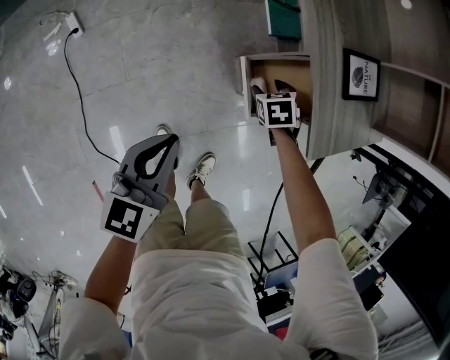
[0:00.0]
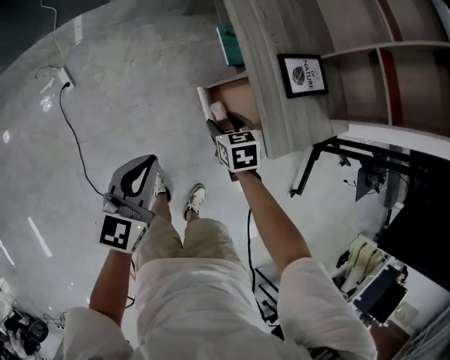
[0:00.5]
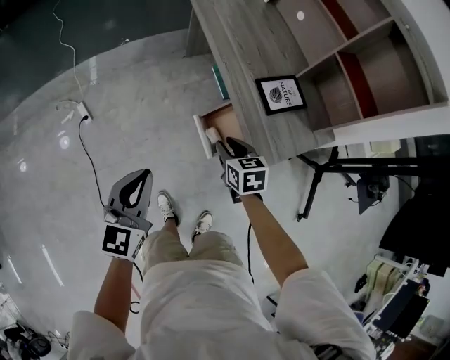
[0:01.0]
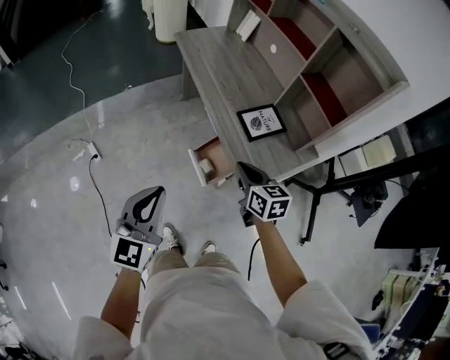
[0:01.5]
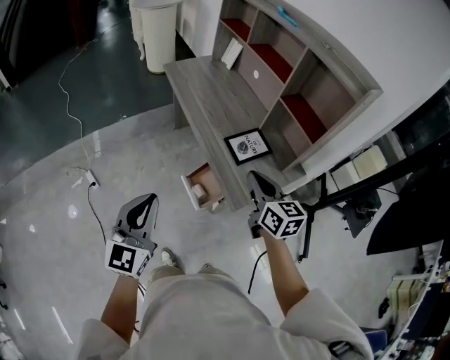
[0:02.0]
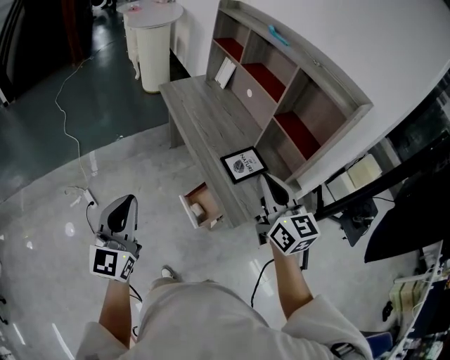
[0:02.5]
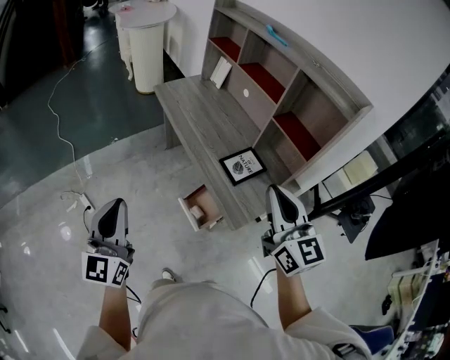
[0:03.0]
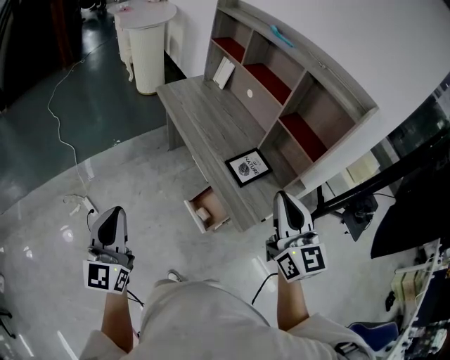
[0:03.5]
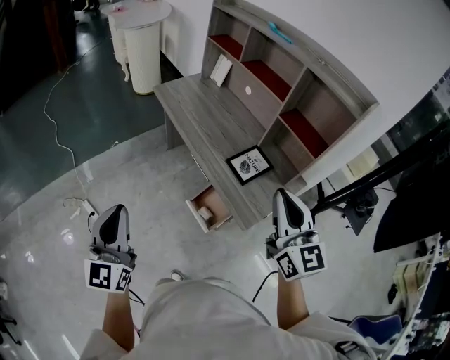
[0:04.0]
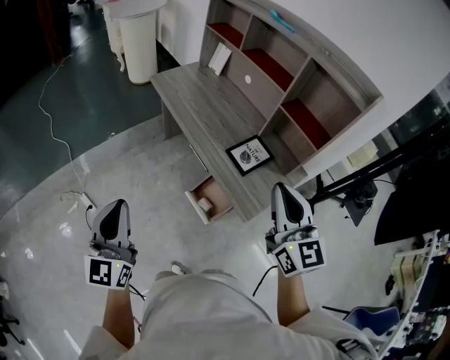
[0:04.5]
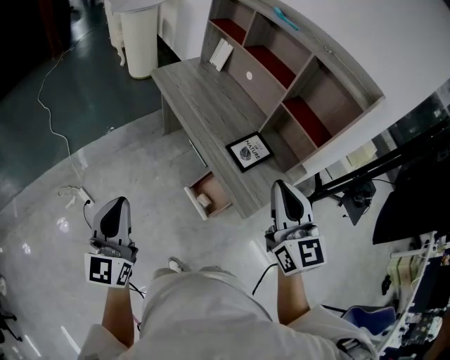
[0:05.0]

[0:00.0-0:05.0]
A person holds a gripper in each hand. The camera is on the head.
0:00.0 to 0:02.5: The left gripper moves upward, approximately 35 cm, and changes its angle by some 40 degrees; the right gripper moves upward, some 60 cm, tips its fingers upward by roughly 70 degrees, and closes its fingers.
0:02.5 to 0:05.0: Both grippers travel together to the left, about 5 cm.

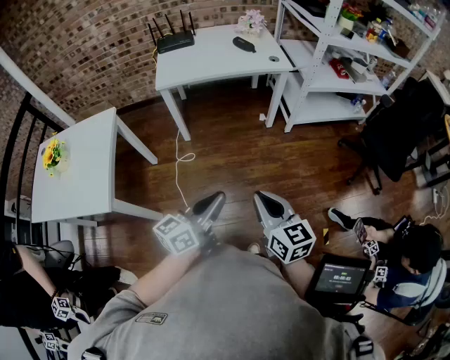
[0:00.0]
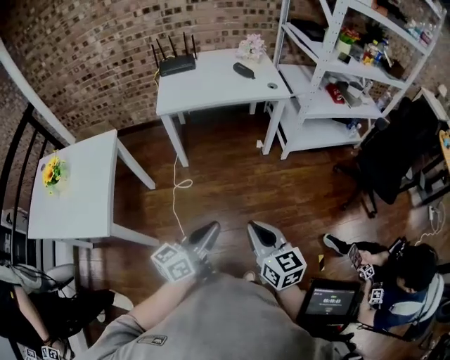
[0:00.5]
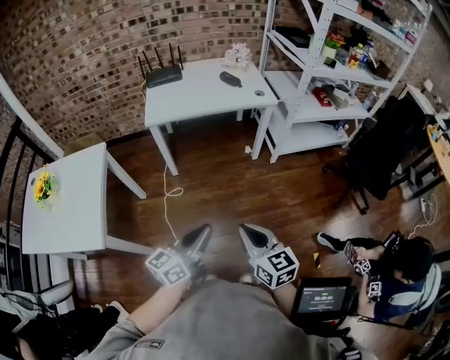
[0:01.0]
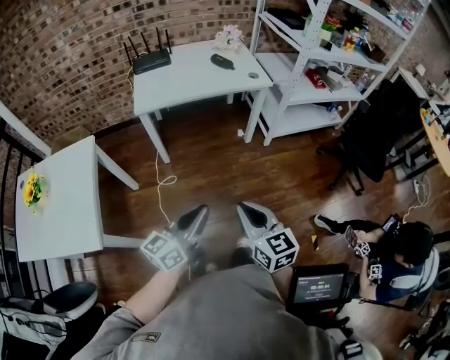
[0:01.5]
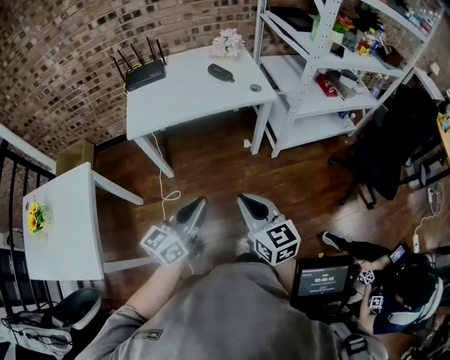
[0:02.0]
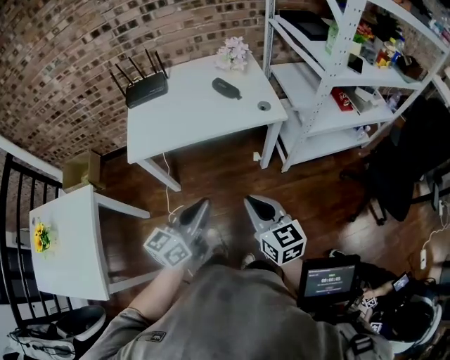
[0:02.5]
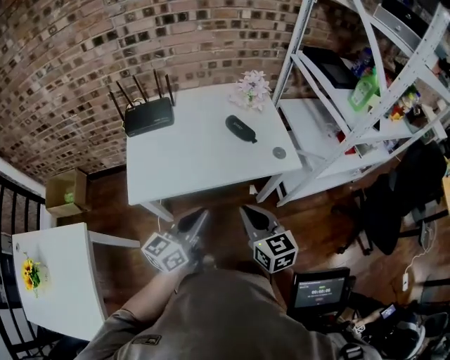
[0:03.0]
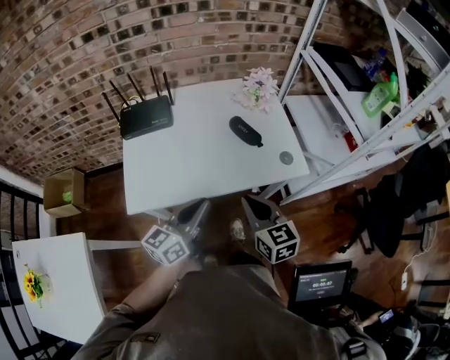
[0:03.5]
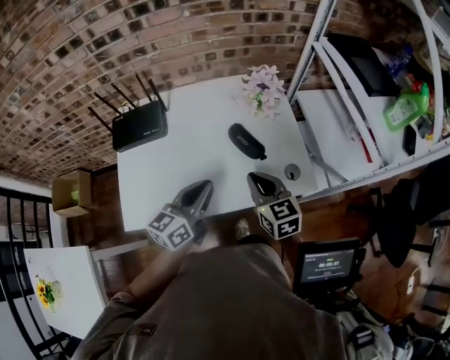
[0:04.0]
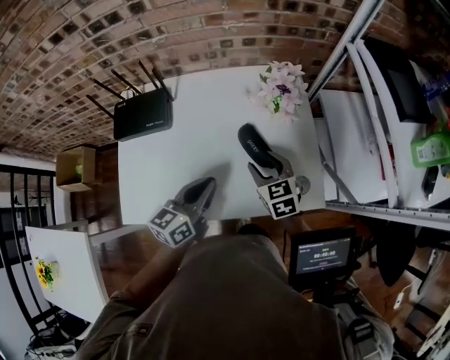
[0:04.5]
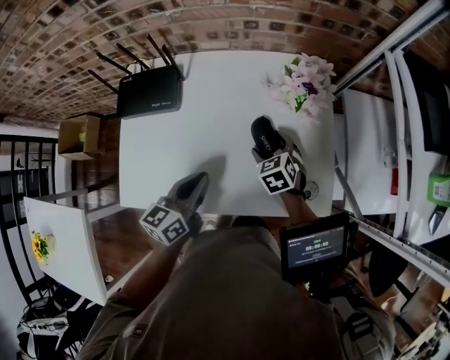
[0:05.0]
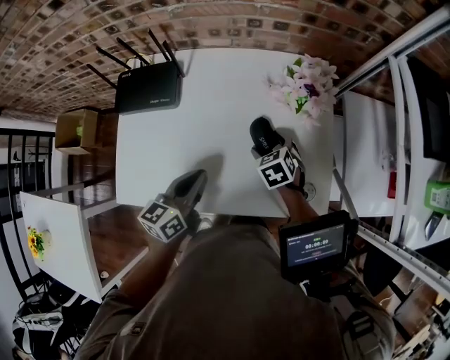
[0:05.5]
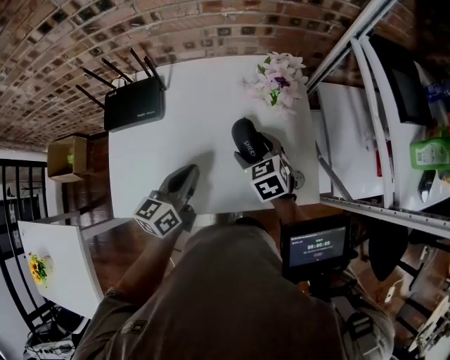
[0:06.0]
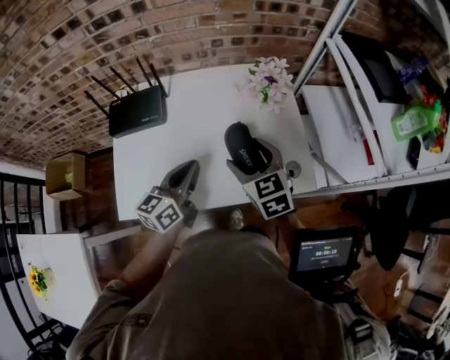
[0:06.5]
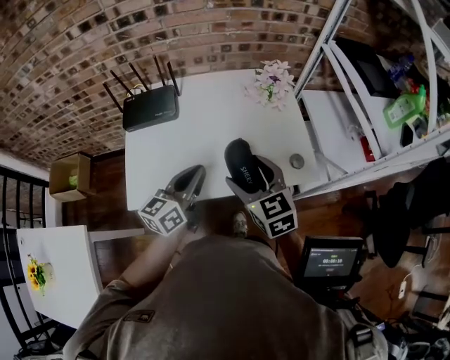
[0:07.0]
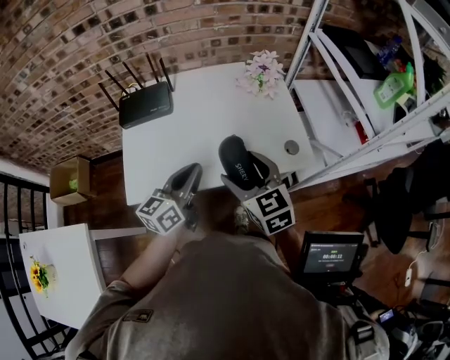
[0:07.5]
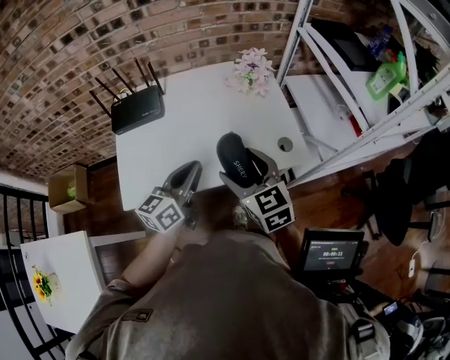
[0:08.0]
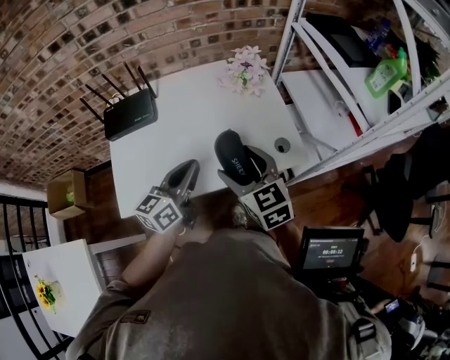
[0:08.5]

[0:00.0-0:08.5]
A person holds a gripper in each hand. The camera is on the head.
0:00.0 to 0:02.0: Both grippers travel together forward, about 20 cm.
0:02.0 to 0:04.0: The pair of grippers is taken forward, roughly 50 cm.
0:04.0 to 0:06.5: The right gripper shifts about 5 cm forward, goes downward and returns, roughly 15 cm each way, and opens up.
0:06.5 to 0:08.5: The left gripper heads backward, covering some 5 cm; the right gripper shifts some 10 cm backward.

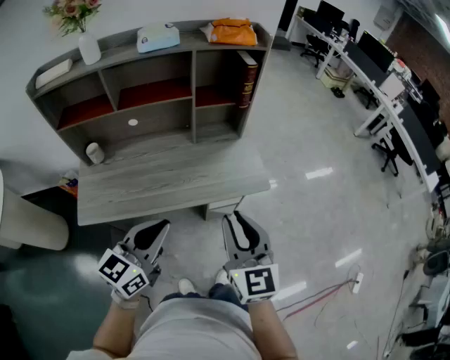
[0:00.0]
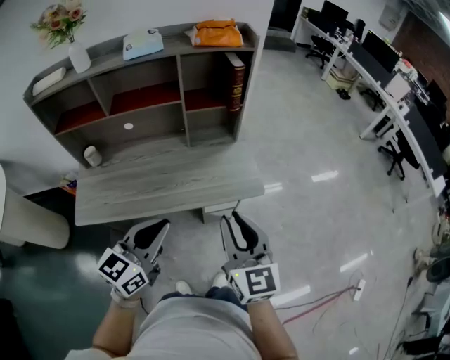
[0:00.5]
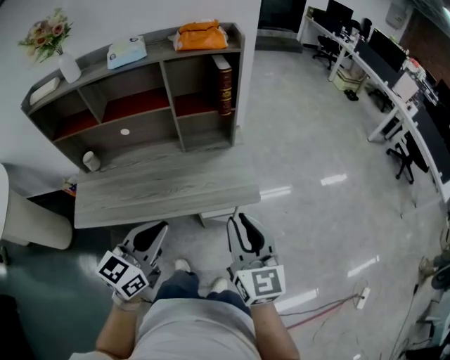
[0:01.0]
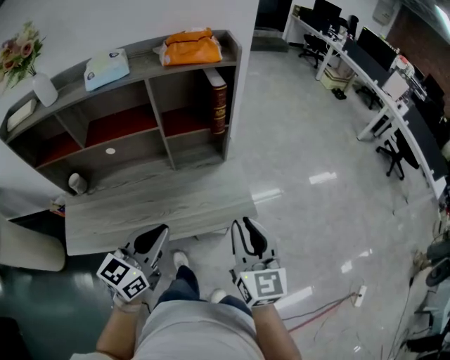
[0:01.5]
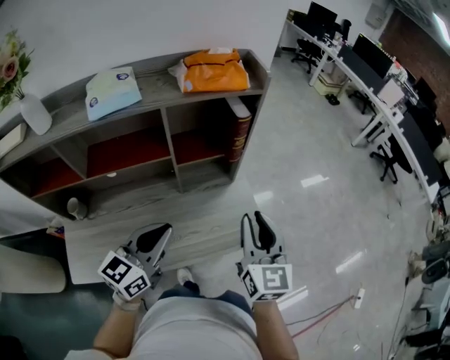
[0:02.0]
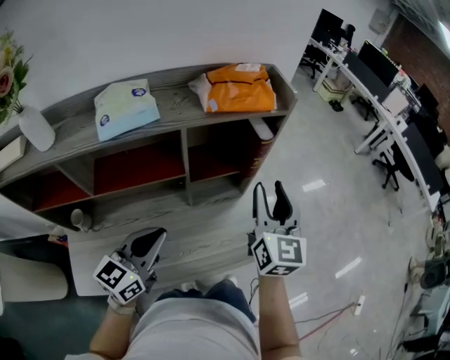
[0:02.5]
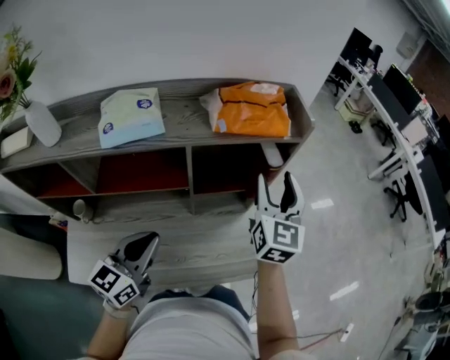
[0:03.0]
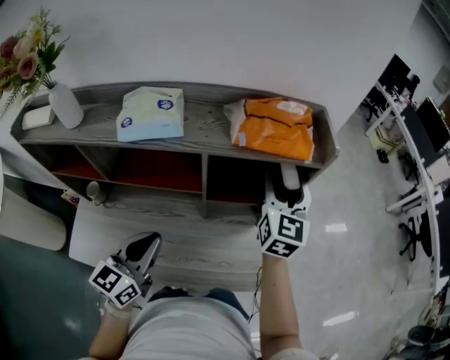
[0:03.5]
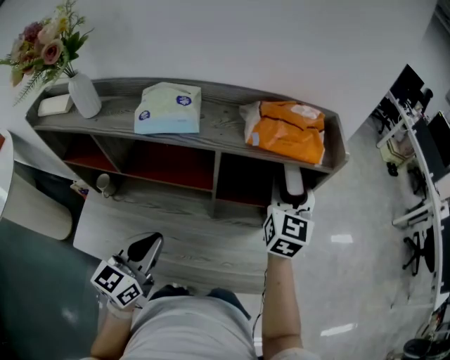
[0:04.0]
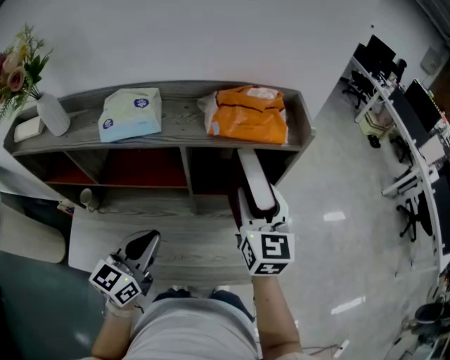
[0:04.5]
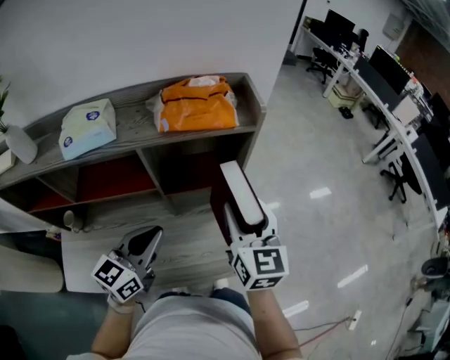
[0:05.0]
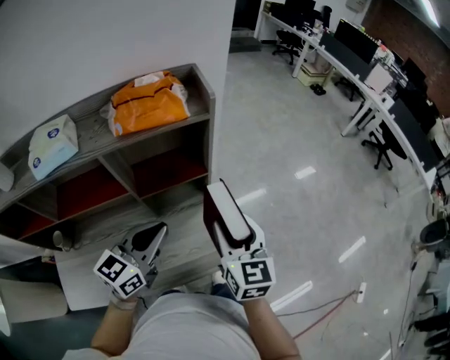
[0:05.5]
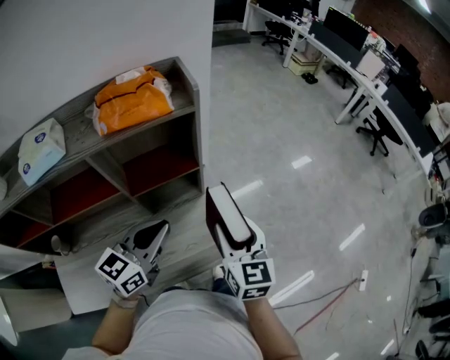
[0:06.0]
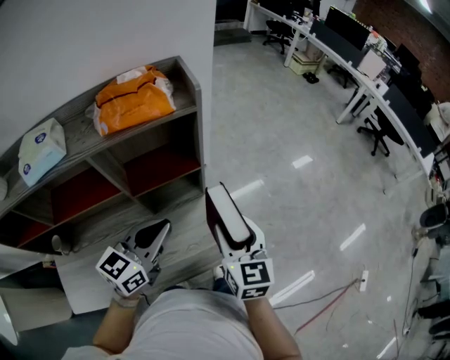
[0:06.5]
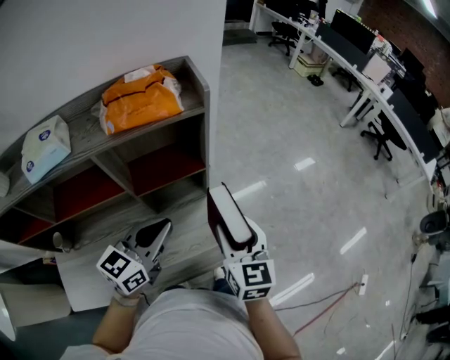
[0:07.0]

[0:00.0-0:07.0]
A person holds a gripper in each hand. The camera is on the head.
0:00.0 to 0:02.0: Both grippers travel together forward, approximately 25 cm.
0:02.0 to 0:03.5: The right gripper travels forward by approximately 30 cm, and opens up. Meanwhile the left gripper moves to the left and forward, roughly 10 cm, and turns by approximately 20 degrees.
0:03.5 to 0:05.0: The right gripper is displaced backward by some 15 cm, while the left gripper heads to the right, covering about 10 cm.
0:05.0 to 0:07.0: The right gripper travels downward and to the right by roughly 10 cm. The left gripper travels to the right by roughly 10 cm.

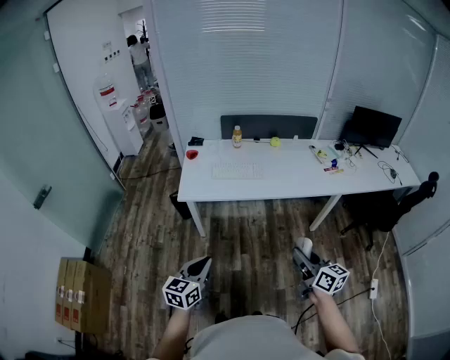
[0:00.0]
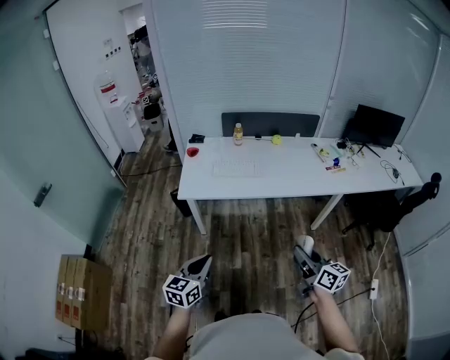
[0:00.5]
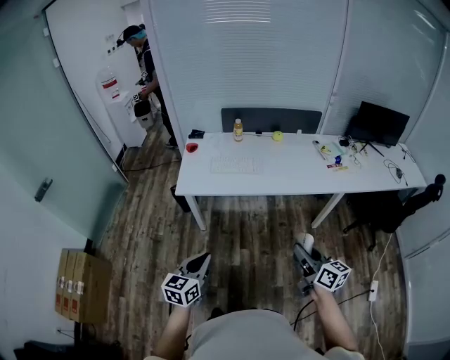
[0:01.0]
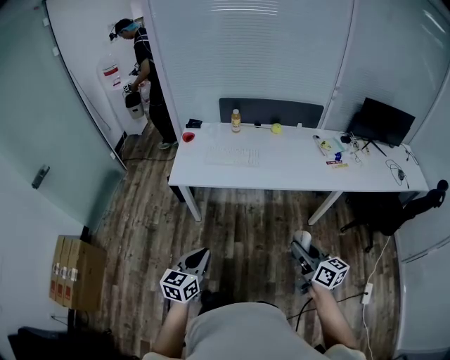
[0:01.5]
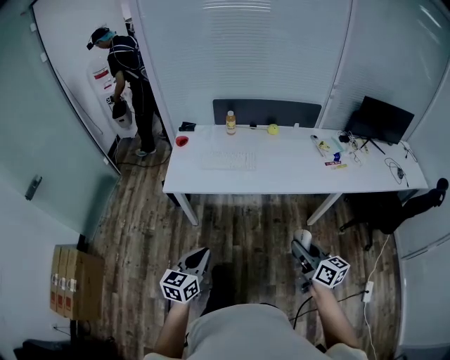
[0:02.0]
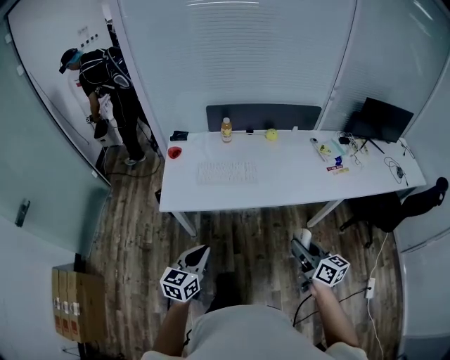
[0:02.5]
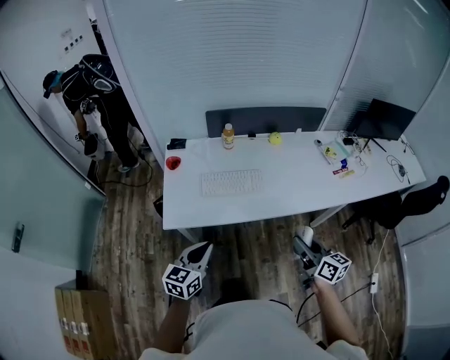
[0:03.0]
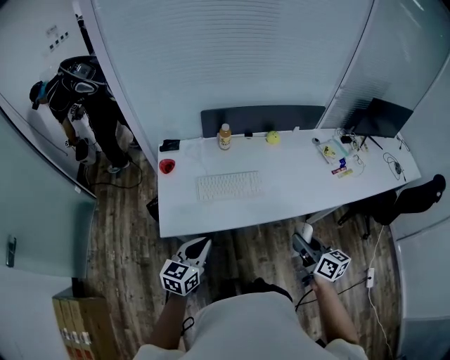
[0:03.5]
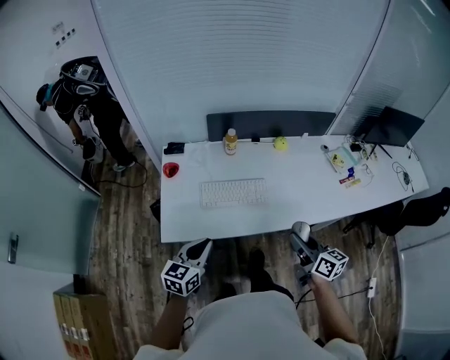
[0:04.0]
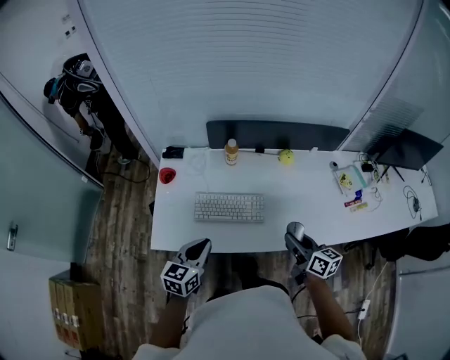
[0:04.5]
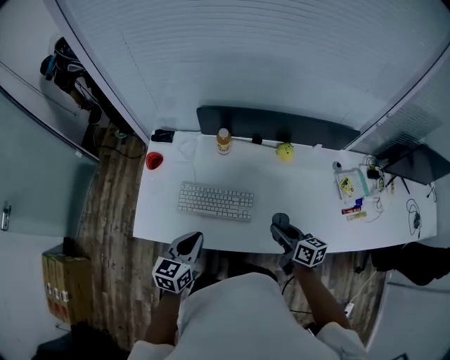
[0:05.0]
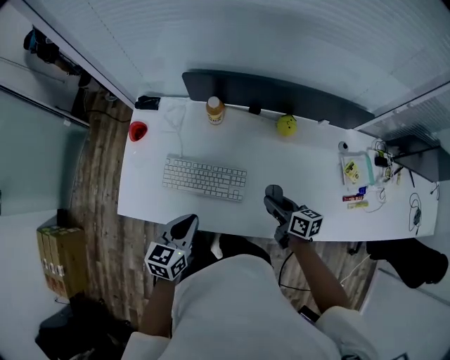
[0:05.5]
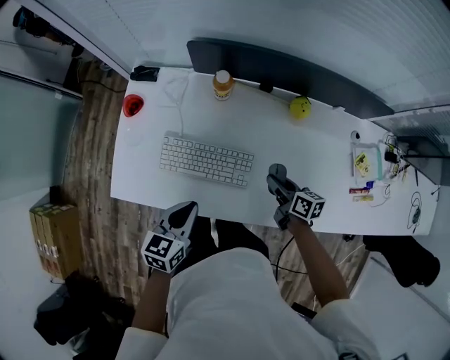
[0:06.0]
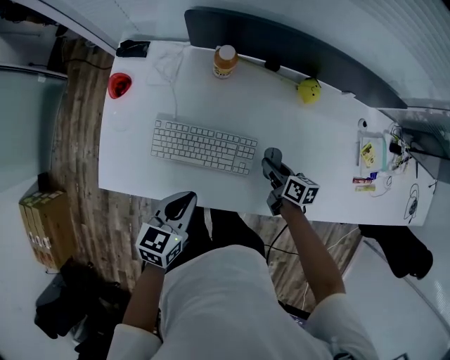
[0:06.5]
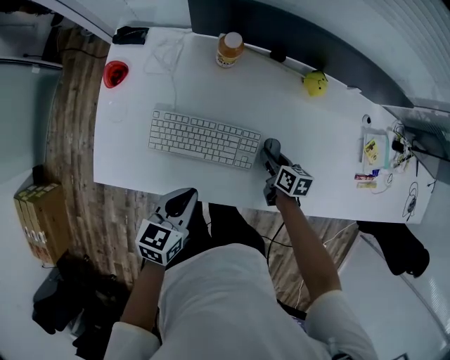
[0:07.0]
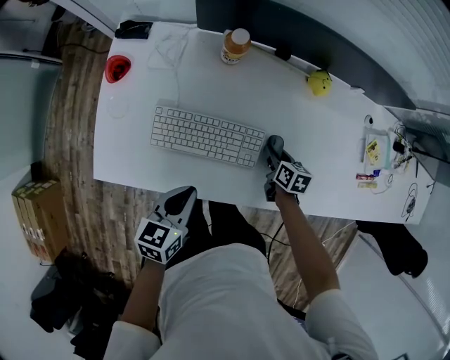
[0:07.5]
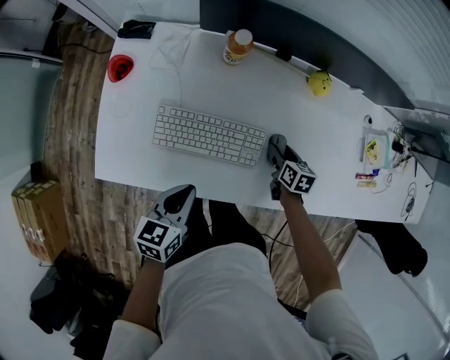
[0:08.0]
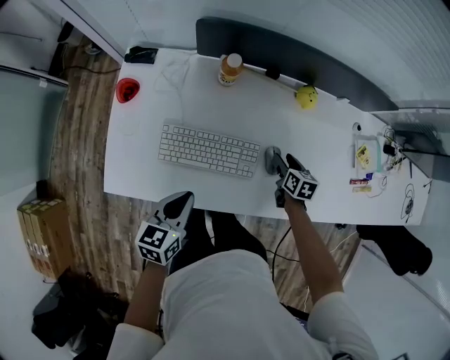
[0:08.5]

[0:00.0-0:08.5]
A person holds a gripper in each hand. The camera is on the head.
0:00.0 to 0:02.0: The right gripper heads forward and to the right, covering some 10 cm, while the left gripper travels to the right and forward by approximately 10 cm.
0:02.0 to 0:04.0: The left gripper shifts some 30 cm forward, while the right gripper heads forward and to the left, covering approximately 30 cm.
0:04.0 to 0:06.5: The left gripper shifts roughly 25 cm forward, to the right and downward, and rotates about 20 degrees. Meanwhile the right gripper travels downward and forward by some 40 cm, and rotates about 30 degrees.
0:06.5 to 0:08.5: The right gripper changes place by approximately 5 cm, changes its angle by about 30 degrees, and opens.
